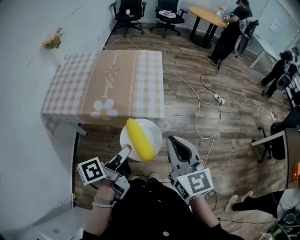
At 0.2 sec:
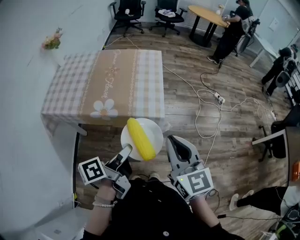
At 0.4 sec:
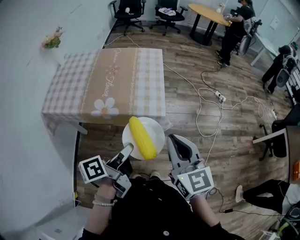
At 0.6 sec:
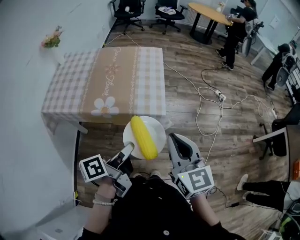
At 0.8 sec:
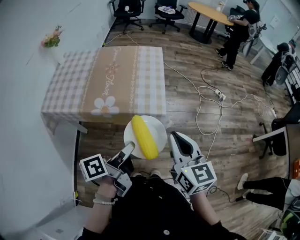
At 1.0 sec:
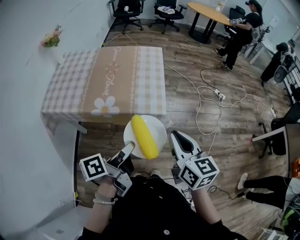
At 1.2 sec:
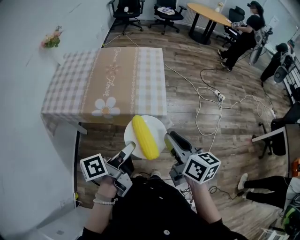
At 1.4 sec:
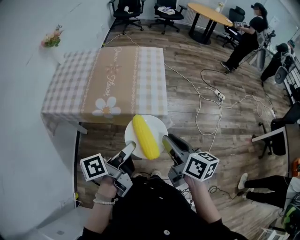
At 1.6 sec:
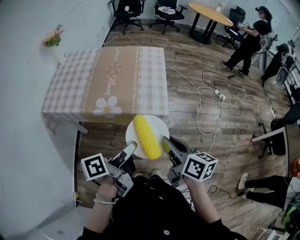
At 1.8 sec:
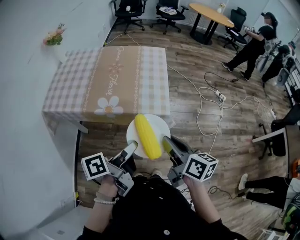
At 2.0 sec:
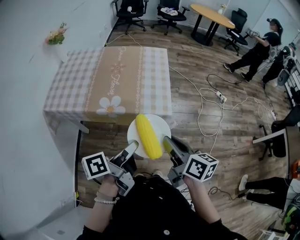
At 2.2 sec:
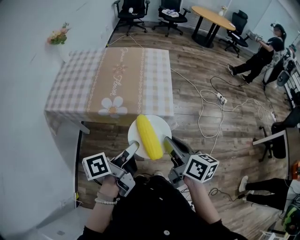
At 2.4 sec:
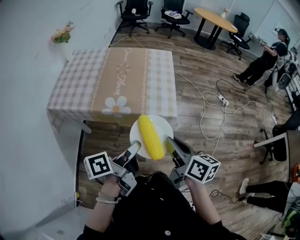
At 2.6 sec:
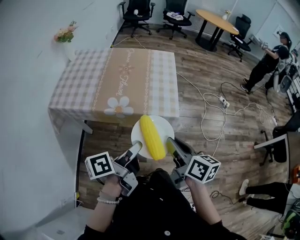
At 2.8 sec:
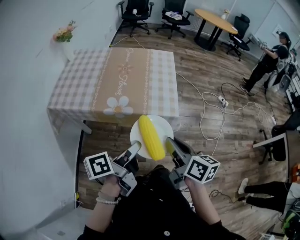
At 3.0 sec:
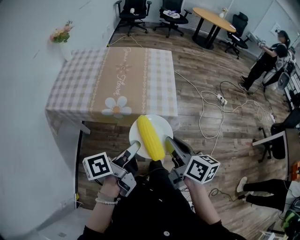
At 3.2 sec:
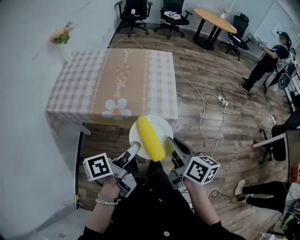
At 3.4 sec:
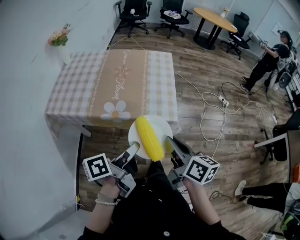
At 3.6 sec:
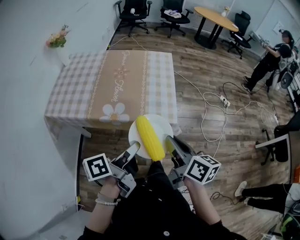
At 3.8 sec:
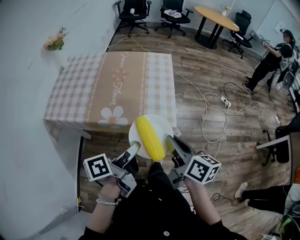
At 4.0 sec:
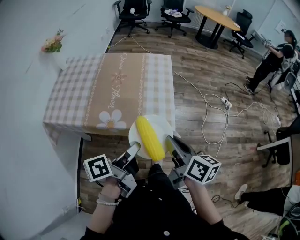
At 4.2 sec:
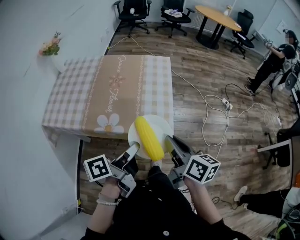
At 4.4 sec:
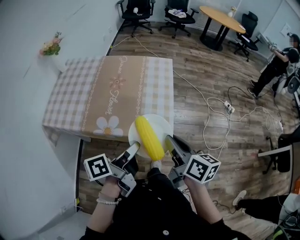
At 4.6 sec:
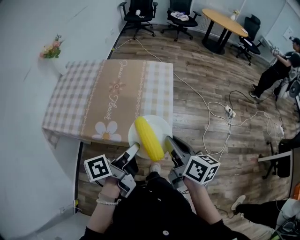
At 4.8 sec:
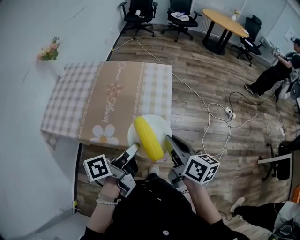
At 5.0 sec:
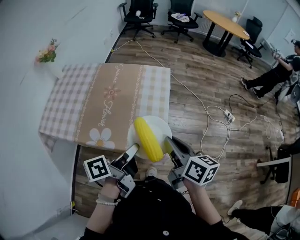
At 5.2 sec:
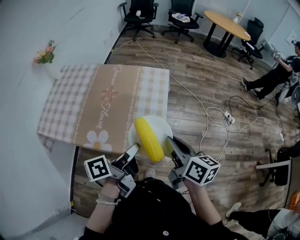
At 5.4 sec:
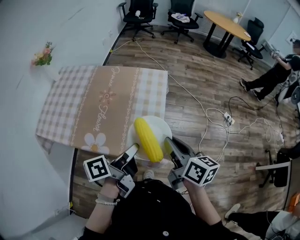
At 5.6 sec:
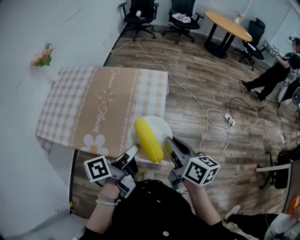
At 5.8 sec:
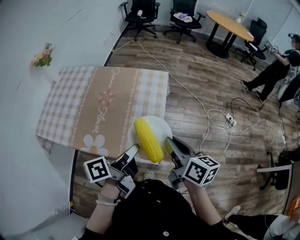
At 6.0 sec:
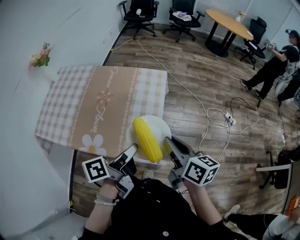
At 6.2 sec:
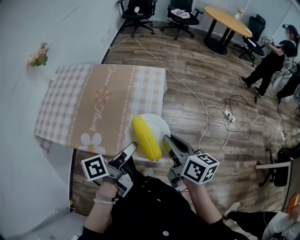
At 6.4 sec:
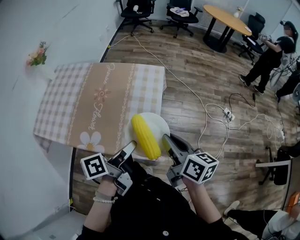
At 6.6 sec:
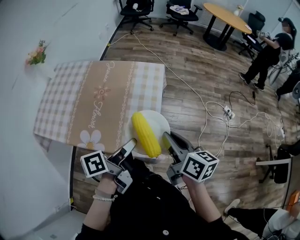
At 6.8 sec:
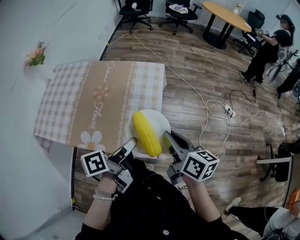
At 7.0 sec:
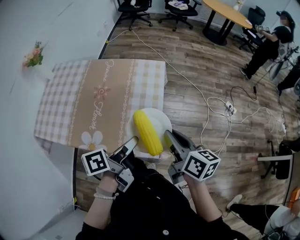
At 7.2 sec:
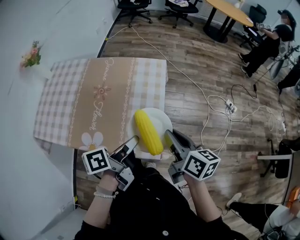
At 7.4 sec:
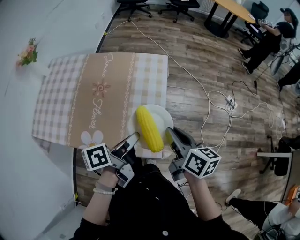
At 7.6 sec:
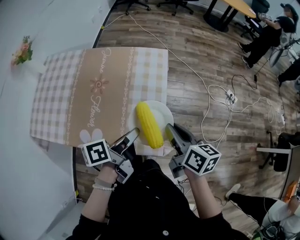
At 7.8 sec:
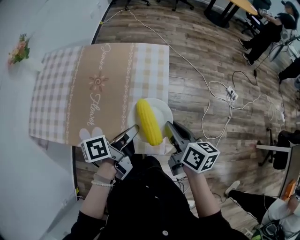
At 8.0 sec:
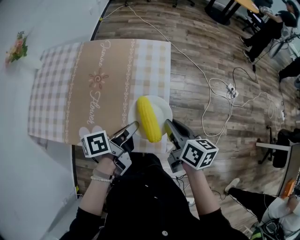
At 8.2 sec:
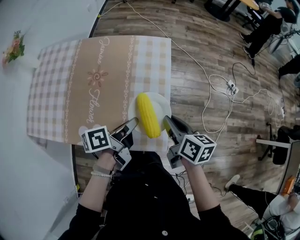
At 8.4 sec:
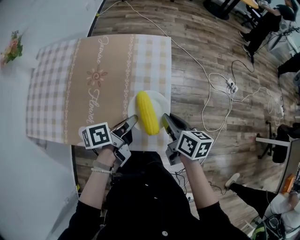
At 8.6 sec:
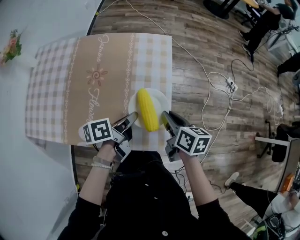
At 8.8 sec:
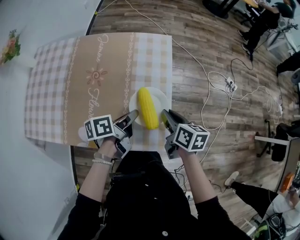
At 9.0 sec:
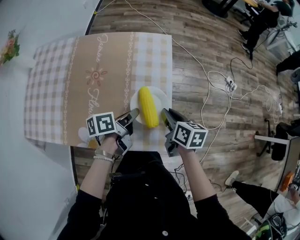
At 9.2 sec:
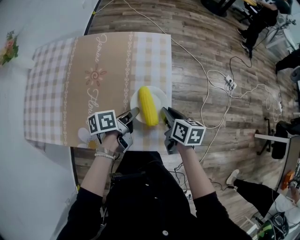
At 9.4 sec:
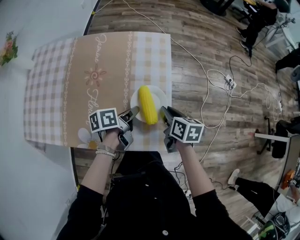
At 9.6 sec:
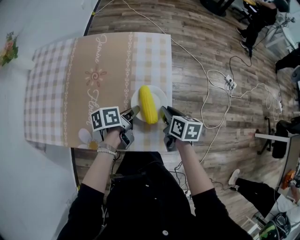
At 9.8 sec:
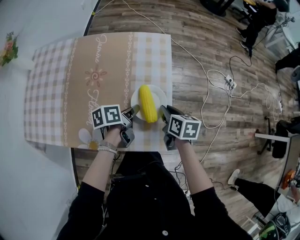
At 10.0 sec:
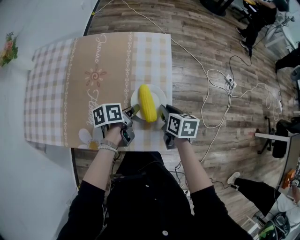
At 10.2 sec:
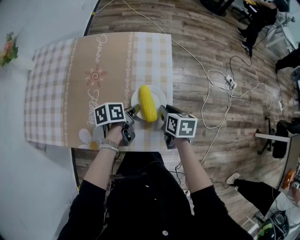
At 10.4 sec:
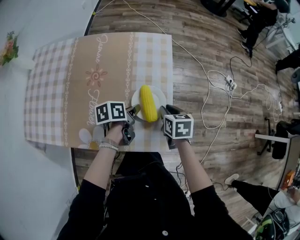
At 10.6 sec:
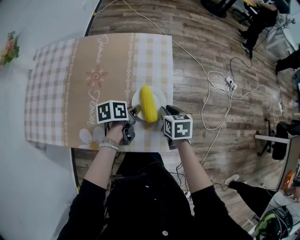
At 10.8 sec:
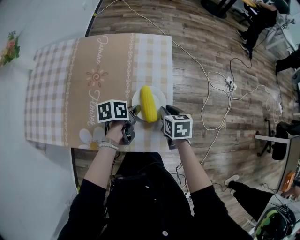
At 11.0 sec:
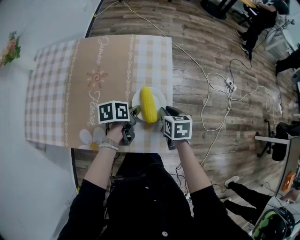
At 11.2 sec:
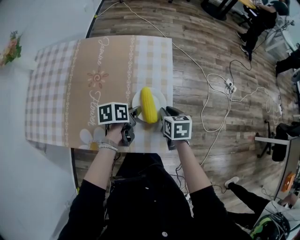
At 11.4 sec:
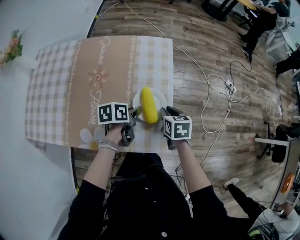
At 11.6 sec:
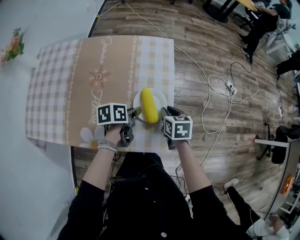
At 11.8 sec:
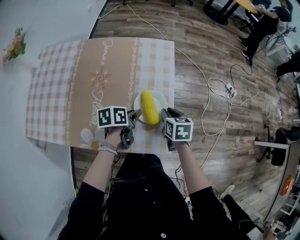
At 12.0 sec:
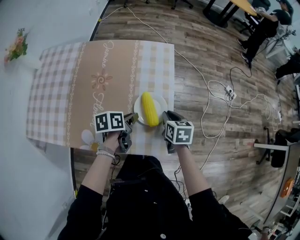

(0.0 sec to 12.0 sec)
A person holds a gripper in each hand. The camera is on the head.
0.0 sec - 1.6 sec: The right gripper travels downward by some 10 cm, and twists about 40 degrees clockwise, seen from behind.
1.6 sec - 3.0 sec: The grippers stay close to where they were, moving slightly.
3.0 sec - 4.4 sec: Both grippers move forward, approximately 15 cm.
4.4 sec - 6.0 sec: Both grippers move forward and to the right, roughly 15 cm.
6.0 sec - 7.6 sec: The right gripper travels downward by roughly 5 cm; the left gripper travels forward and downward by roughly 10 cm.
7.6 sec - 9.0 sec: The left gripper heads downward and forward, covering approximately 15 cm. The right gripper shifts about 15 cm downward.
9.0 sec - 10.4 sec: The grippers both shift downward by about 5 cm. The right gripper swivels roughly 20 degrees.
10.4 sec - 12.0 sec: The grippers move only a little.

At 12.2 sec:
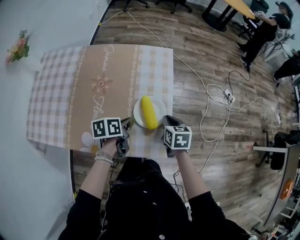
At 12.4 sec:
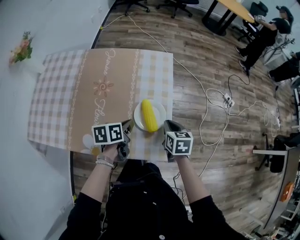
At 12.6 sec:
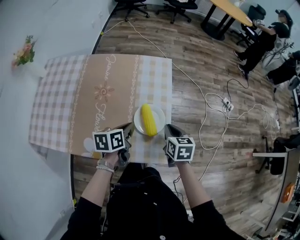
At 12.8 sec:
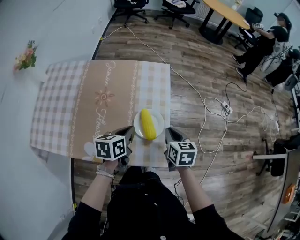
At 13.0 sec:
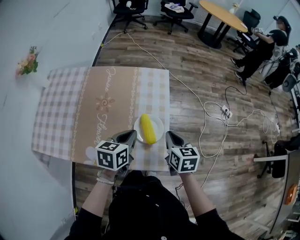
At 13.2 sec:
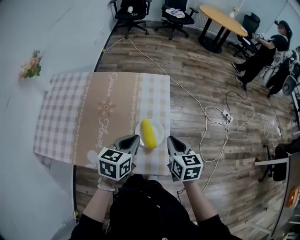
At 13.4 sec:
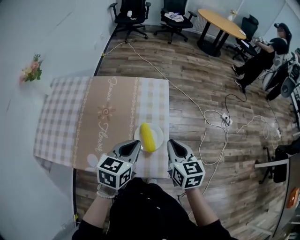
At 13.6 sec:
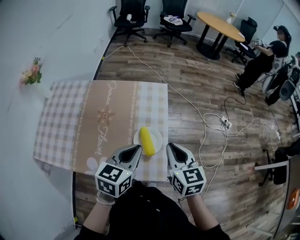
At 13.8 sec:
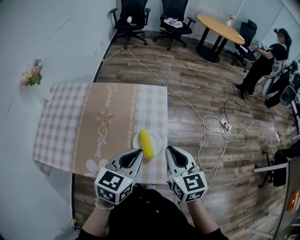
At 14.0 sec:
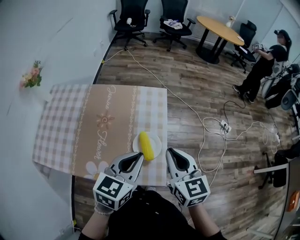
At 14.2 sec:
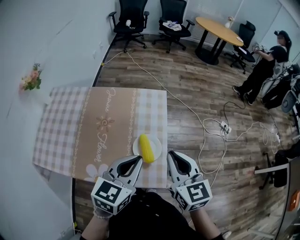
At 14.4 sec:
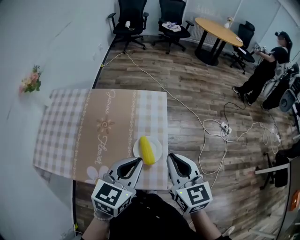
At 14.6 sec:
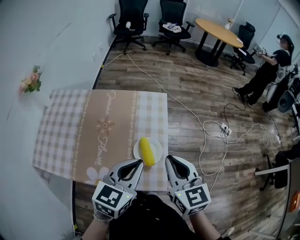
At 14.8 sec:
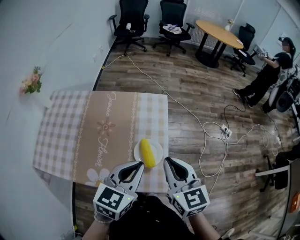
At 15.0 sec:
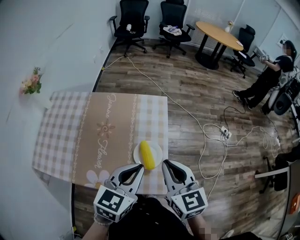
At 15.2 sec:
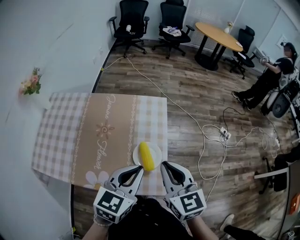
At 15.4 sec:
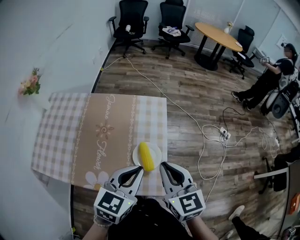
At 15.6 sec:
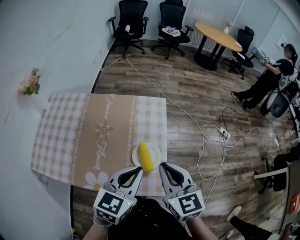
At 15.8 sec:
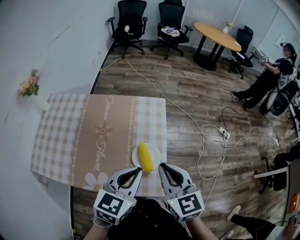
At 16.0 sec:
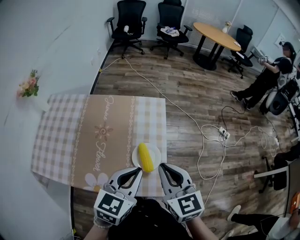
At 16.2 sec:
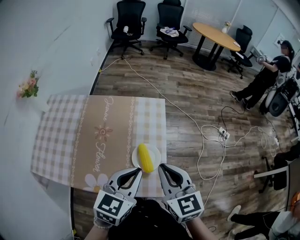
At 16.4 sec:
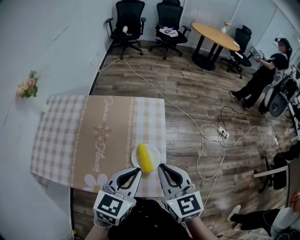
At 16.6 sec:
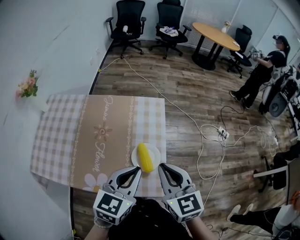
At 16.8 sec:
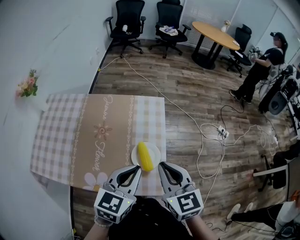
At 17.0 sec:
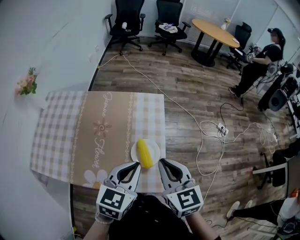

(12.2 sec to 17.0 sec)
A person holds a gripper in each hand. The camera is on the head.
12.2 sec - 13.8 sec: The grippers both shift upward by some 20 cm. The right gripper swivels roughly 30 degrees; the left gripper rolls clockwise, seen from behind, by roughly 50 degrees.
13.8 sec - 15.4 sec: The grippers stay close to where they were, moving slightly.
15.4 sec - 17.0 sec: The two grippers keep their place.

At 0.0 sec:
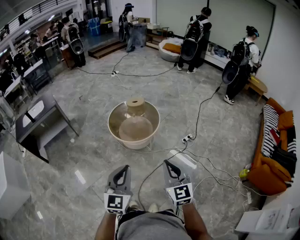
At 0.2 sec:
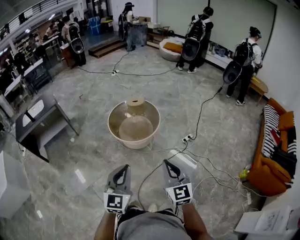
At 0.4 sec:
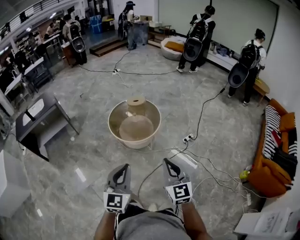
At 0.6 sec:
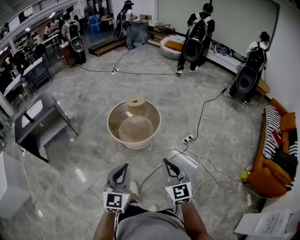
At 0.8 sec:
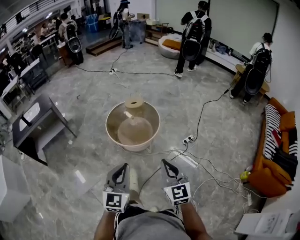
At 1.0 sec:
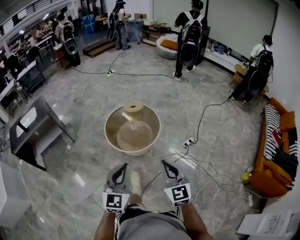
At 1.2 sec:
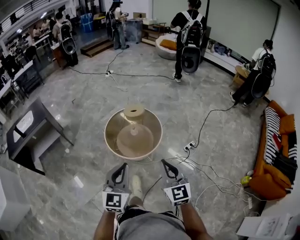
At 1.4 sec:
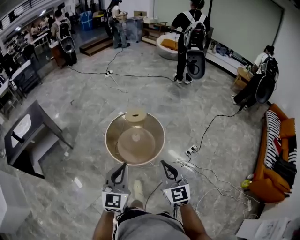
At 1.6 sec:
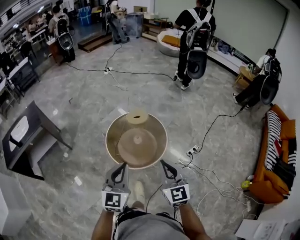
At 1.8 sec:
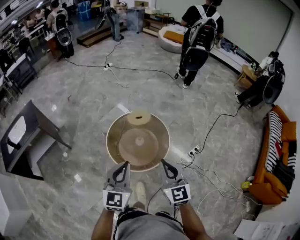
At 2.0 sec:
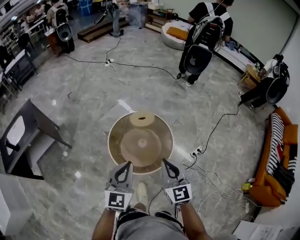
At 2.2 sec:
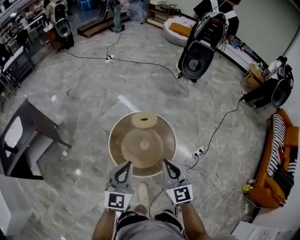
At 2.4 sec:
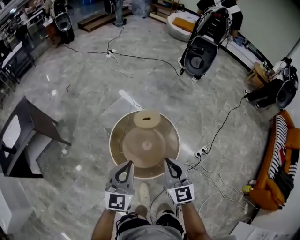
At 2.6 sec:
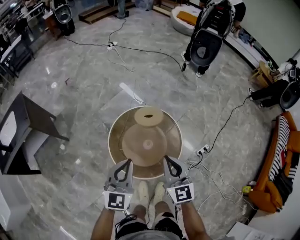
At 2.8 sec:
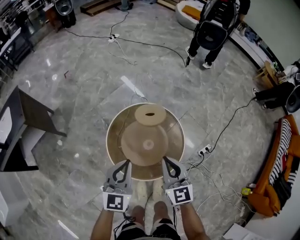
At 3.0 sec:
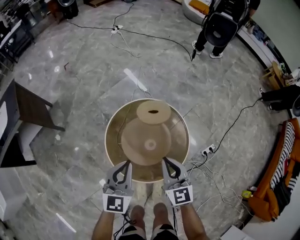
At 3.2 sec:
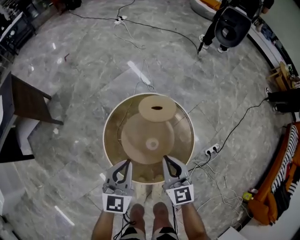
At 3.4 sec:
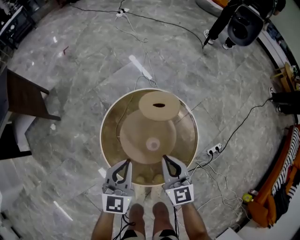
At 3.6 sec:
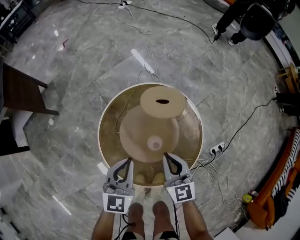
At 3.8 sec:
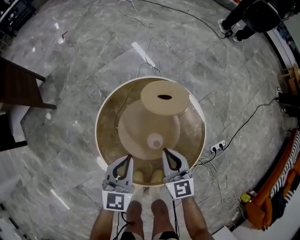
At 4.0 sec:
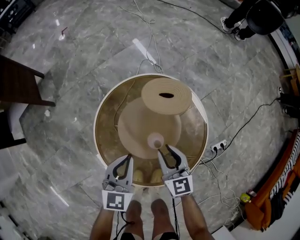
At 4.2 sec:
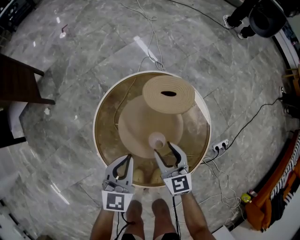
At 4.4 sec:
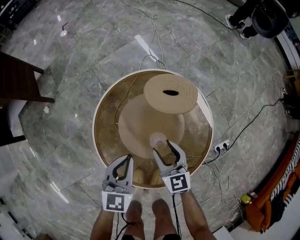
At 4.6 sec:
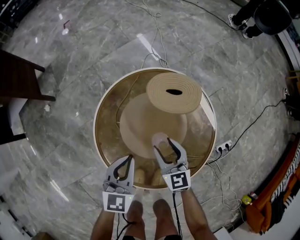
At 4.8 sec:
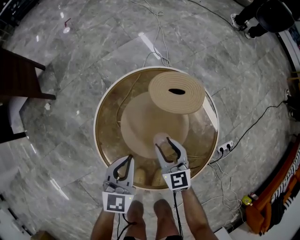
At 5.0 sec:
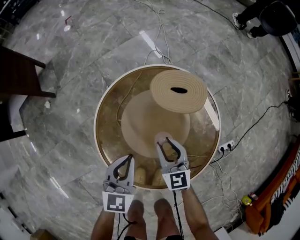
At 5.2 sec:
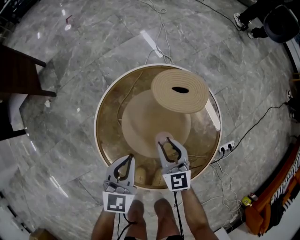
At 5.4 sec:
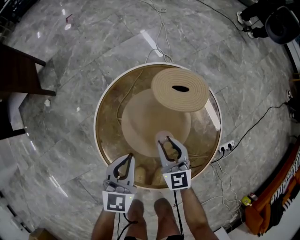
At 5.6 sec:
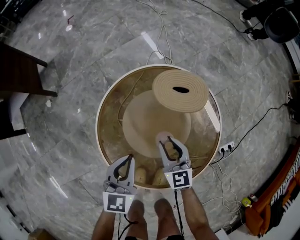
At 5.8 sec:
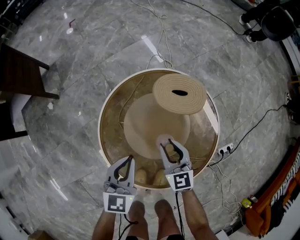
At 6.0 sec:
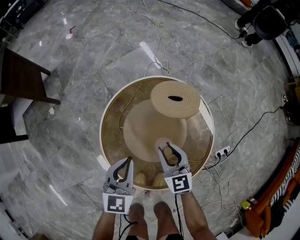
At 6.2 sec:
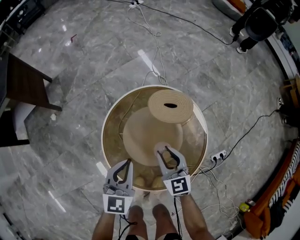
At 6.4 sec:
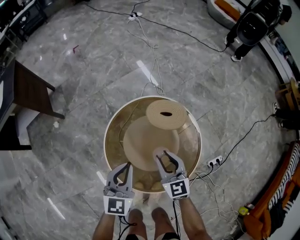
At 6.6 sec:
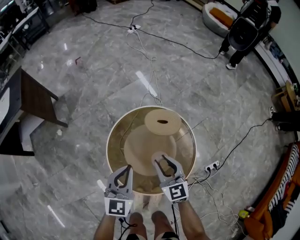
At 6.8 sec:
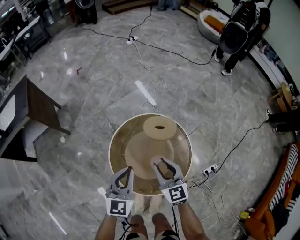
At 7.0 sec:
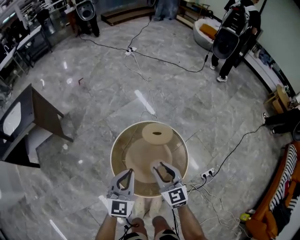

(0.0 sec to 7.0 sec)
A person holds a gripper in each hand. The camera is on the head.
0.0 sec - 1.4 sec: Both grippers travel together forward, about 35 cm.
1.4 sec - 2.8 sec: Both grippers move forward and downward, some 40 cm.
2.8 sec - 4.2 sec: Both grippers move downward, roughly 35 cm. The right gripper opens.
4.2 sec - 5.6 sec: The right gripper travels downward by some 5 cm, and closes up.
5.6 sec - 7.0 sec: The two grippers go roughly 35 cm upward.
